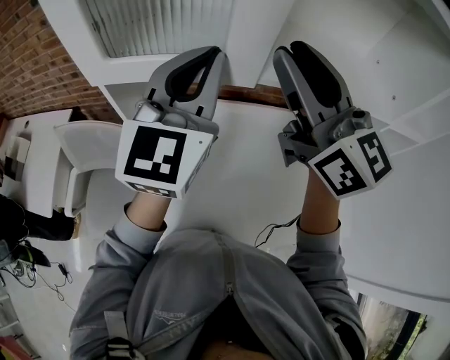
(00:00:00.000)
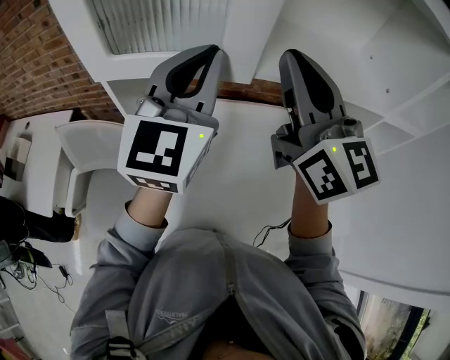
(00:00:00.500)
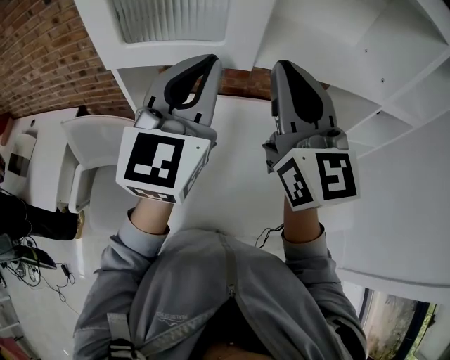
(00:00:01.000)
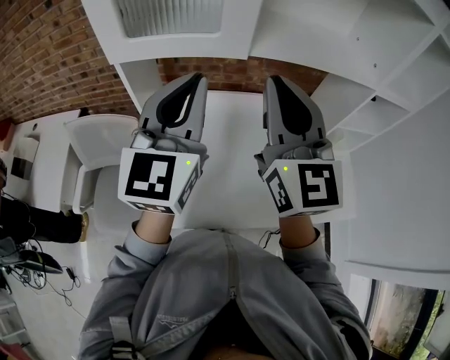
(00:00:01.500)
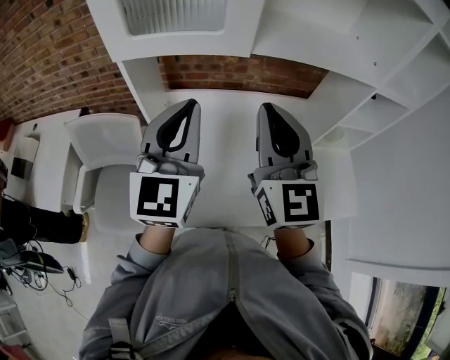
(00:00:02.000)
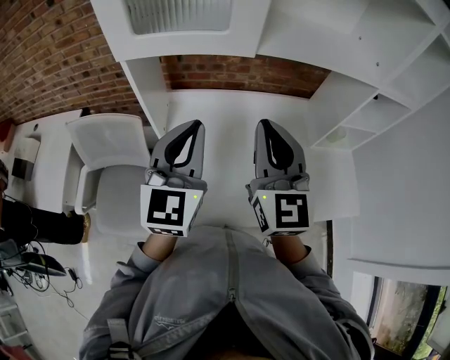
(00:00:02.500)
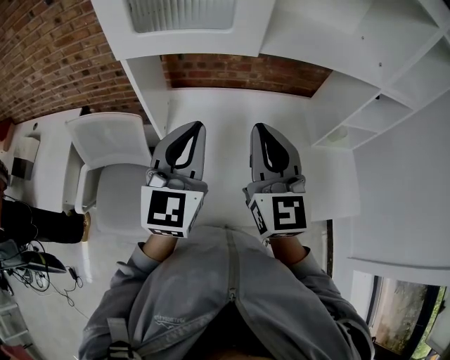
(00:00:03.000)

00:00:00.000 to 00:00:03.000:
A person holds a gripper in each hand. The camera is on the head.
00:00:00.000 to 00:00:01.500: Both grippers move backward, approximately 10 cm. The right gripper rotates some 20 degrees, and closes up.
00:00:01.500 to 00:00:03.000: Both grippers travel together downward, roughly 10 cm.

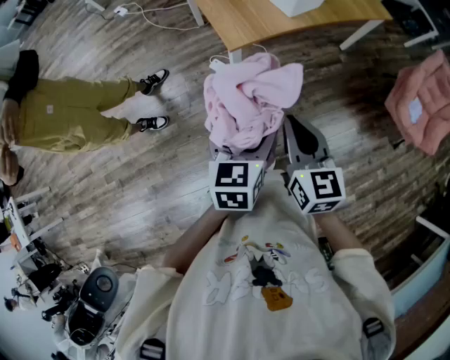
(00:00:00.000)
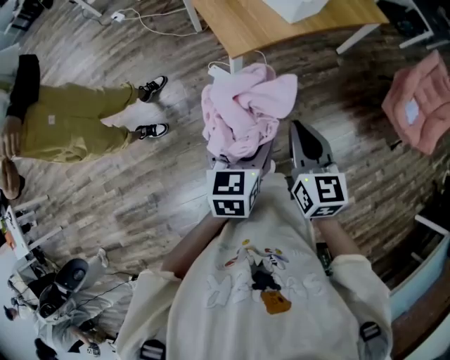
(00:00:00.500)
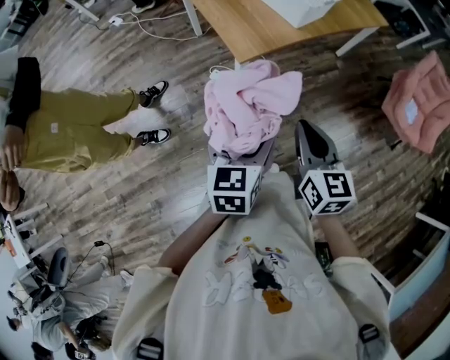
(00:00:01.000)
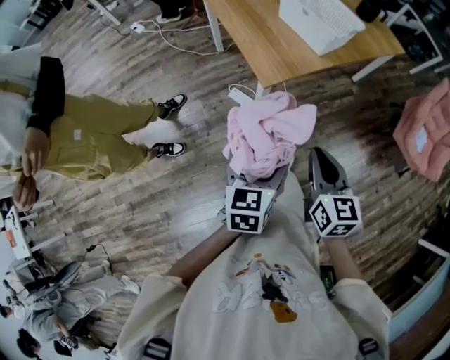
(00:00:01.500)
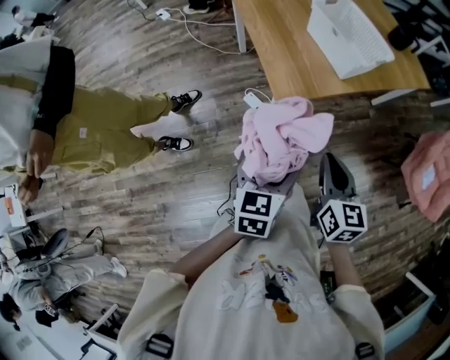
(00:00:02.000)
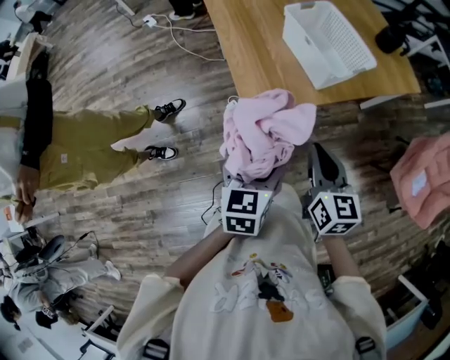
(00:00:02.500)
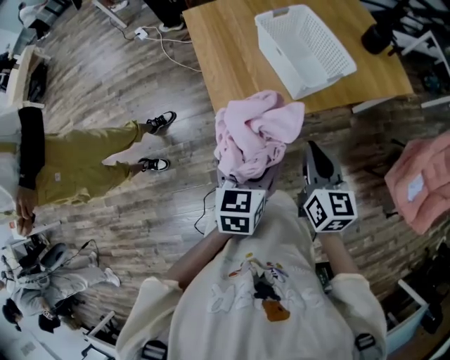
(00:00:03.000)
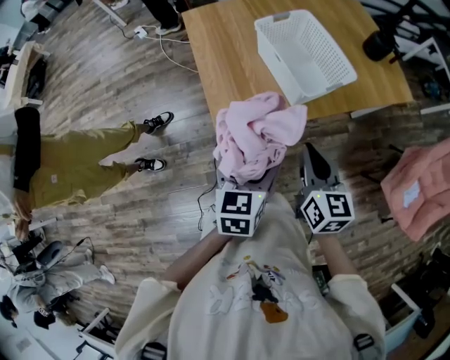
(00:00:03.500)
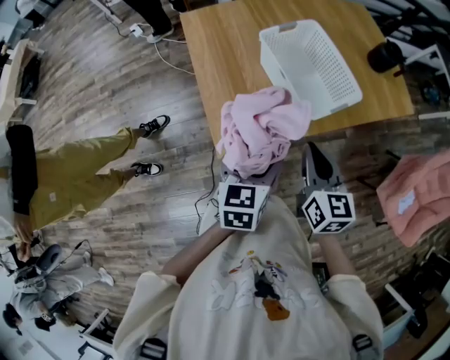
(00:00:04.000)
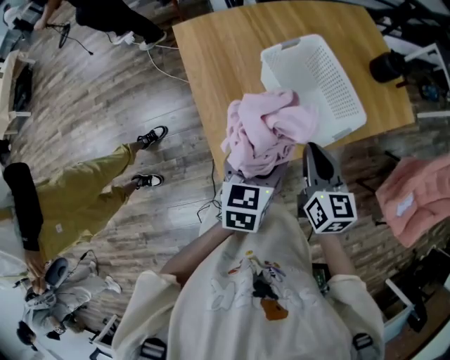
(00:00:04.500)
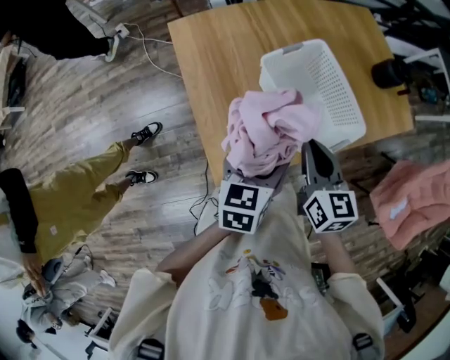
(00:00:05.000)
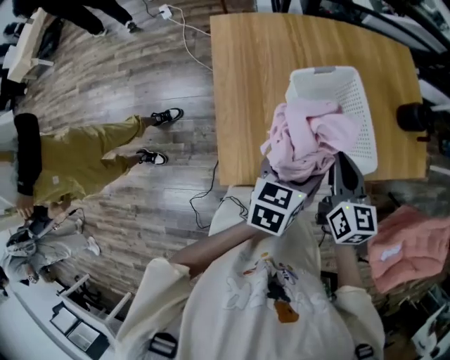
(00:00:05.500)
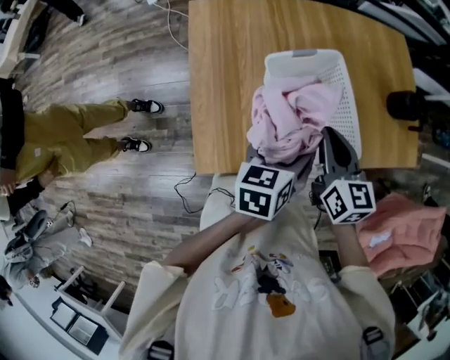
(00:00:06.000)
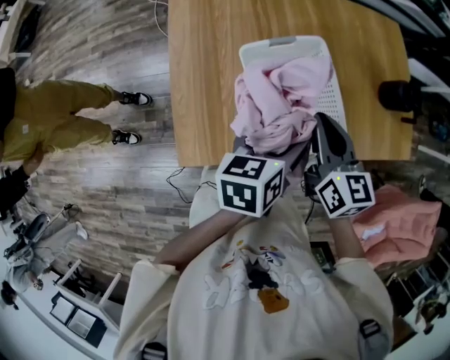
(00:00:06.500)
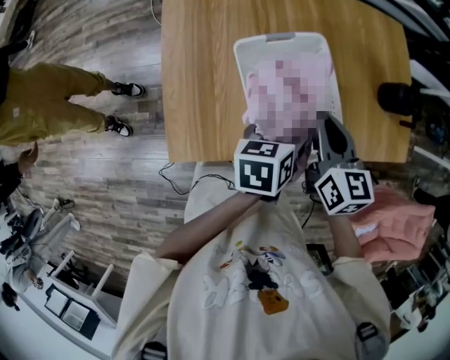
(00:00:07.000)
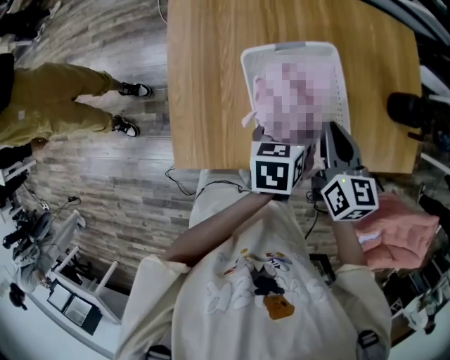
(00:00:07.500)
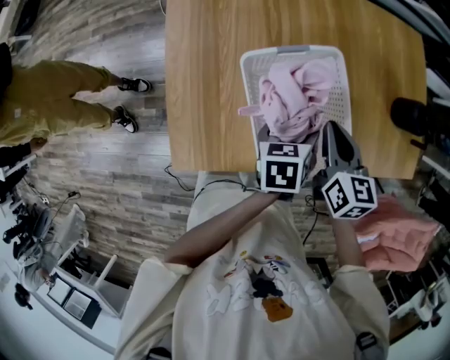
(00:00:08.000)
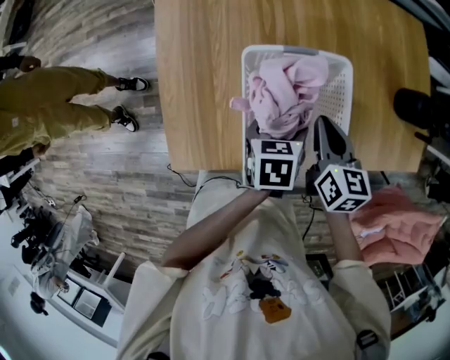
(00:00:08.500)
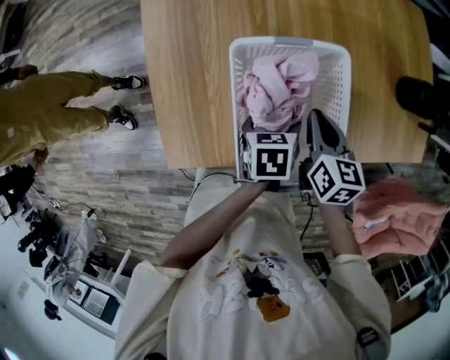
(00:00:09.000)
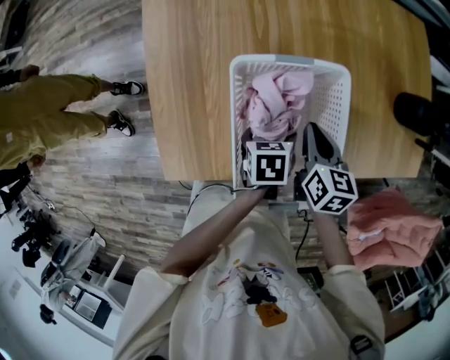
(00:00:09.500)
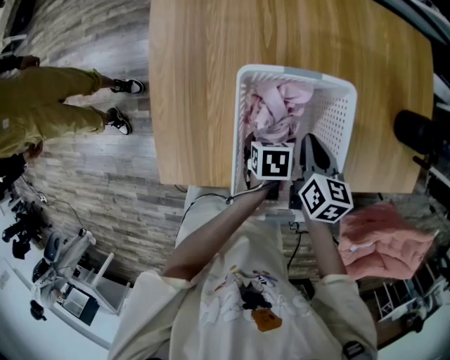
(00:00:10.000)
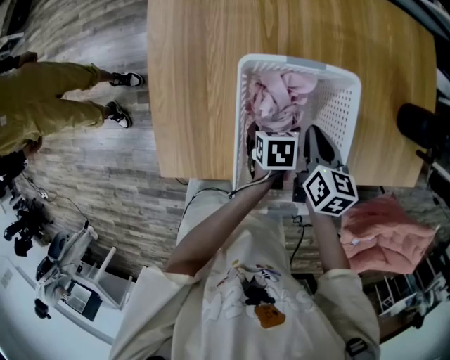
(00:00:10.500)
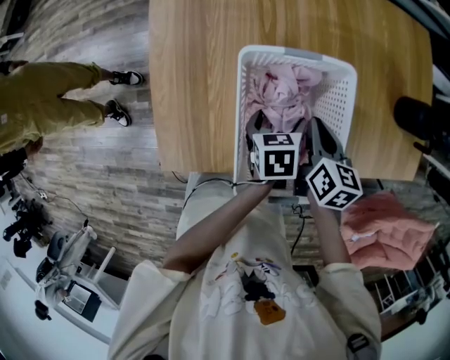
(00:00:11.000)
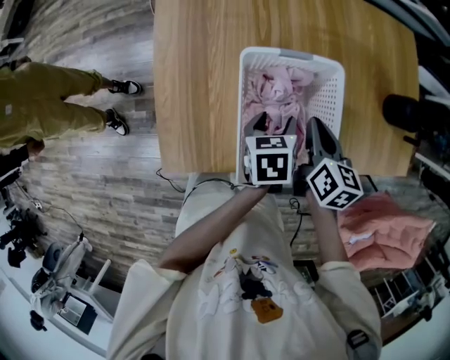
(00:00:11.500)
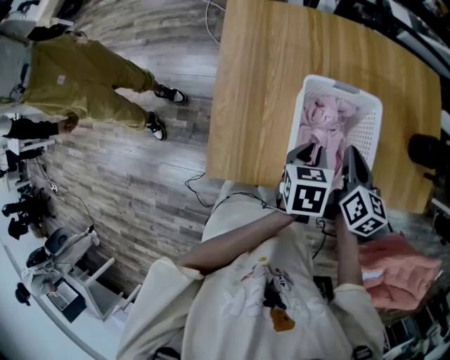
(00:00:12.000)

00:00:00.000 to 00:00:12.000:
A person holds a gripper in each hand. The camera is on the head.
00:00:00.000 to 00:00:02.000: The right gripper heads forward, covering roughly 15 cm, while the left gripper shifts some 15 cm forward and to the left.
00:00:02.000 to 00:00:04.000: The two grippers go about 30 cm forward and to the right.
00:00:04.000 to 00:00:06.000: The left gripper travels forward and to the right by approximately 20 cm, and swivels roughly 20 degrees. The right gripper moves forward, some 25 cm.
00:00:06.000 to 00:00:08.000: The grippers both shift downward, forward and to the right by approximately 15 cm.
00:00:08.000 to 00:00:10.000: The two grippers go about 15 cm downward.
00:00:10.000 to 00:00:12.000: The left gripper moves upward, some 20 cm, rotates about 20 degrees, and closes up. Meanwhile the right gripper travels upward by approximately 10 cm.

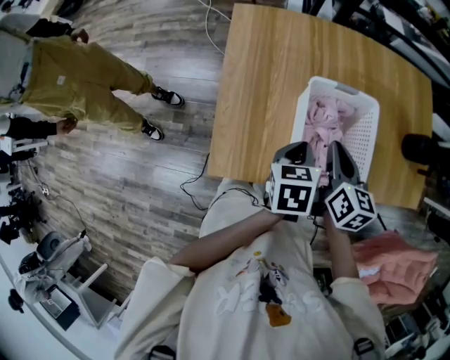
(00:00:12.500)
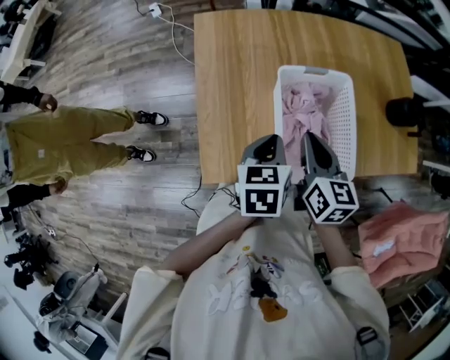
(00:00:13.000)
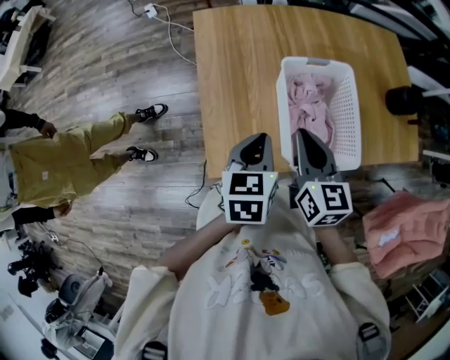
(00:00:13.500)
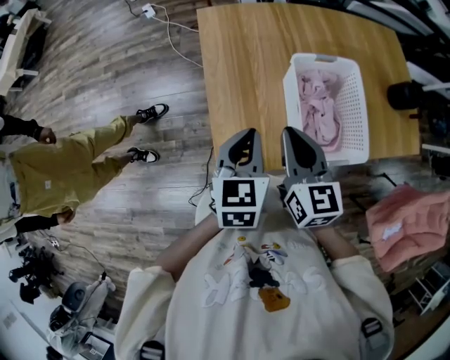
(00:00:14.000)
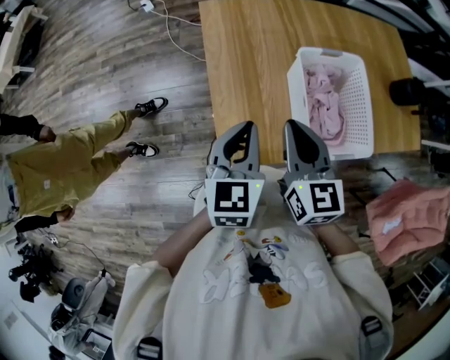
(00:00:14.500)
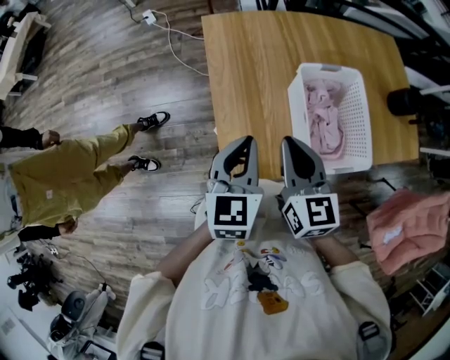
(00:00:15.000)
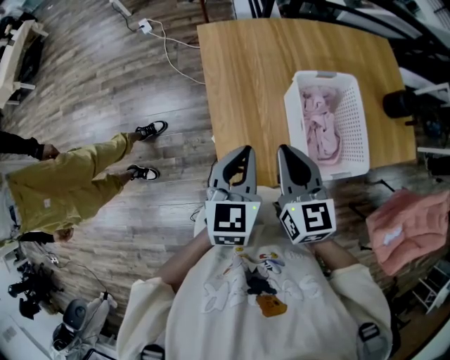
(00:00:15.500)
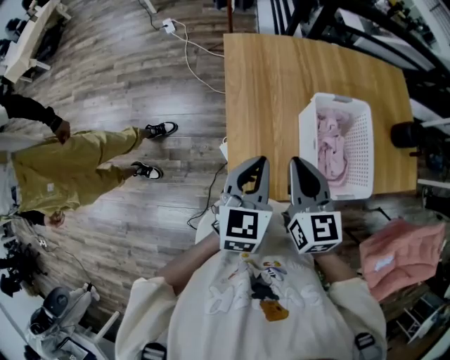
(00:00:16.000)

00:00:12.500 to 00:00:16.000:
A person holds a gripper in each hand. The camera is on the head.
00:00:12.500 to 00:00:14.500: The left gripper travels to the left and upward by roughly 20 cm, and turns by approximately 30 degrees, while the right gripper heads to the left, backward and upward, covering about 20 cm.
00:00:14.500 to 00:00:16.000: The grippers move only a little.

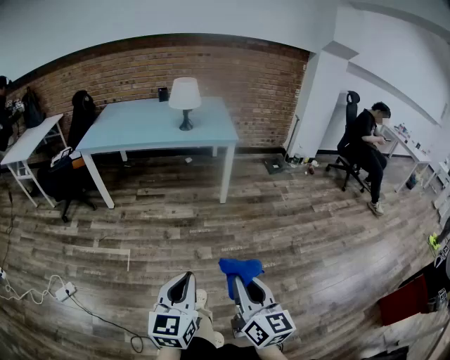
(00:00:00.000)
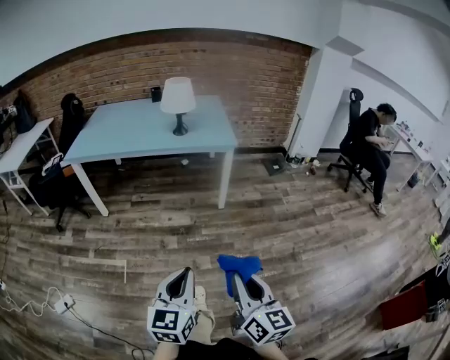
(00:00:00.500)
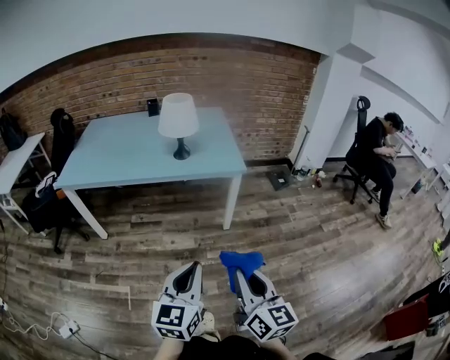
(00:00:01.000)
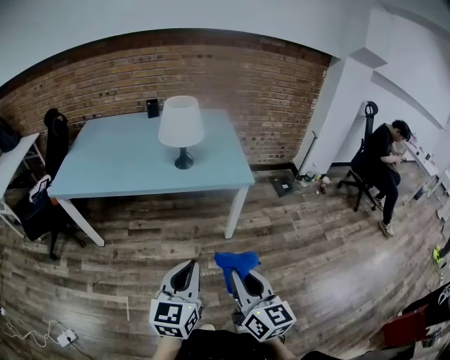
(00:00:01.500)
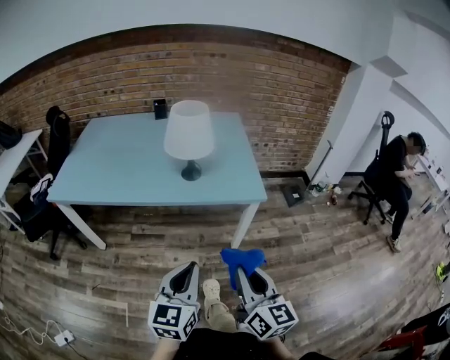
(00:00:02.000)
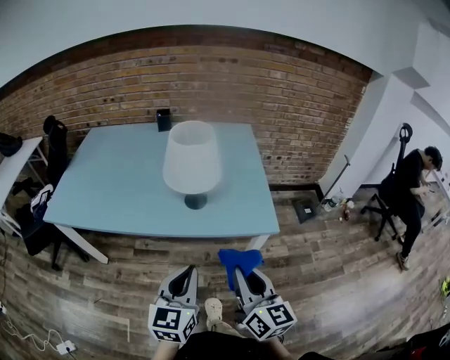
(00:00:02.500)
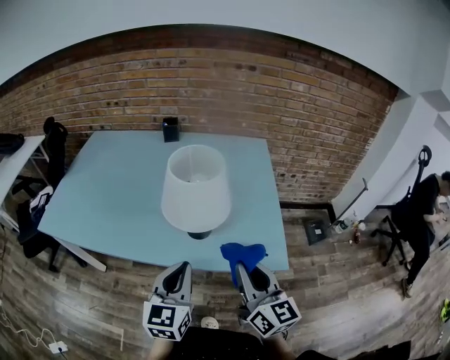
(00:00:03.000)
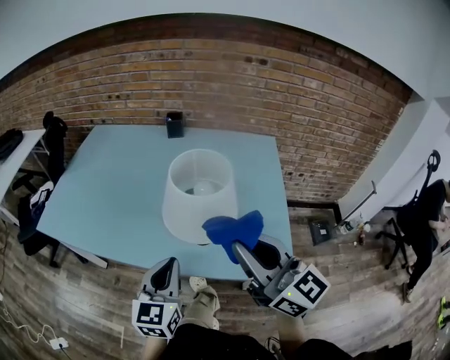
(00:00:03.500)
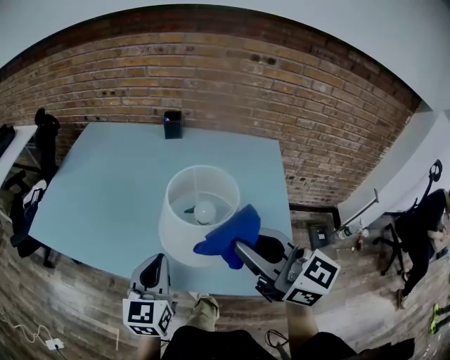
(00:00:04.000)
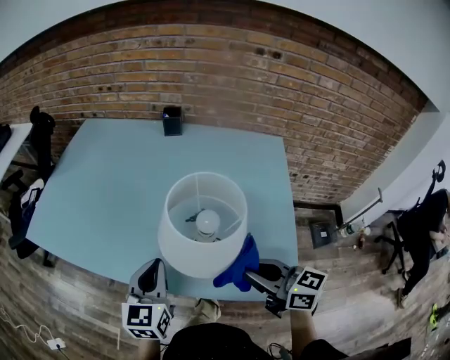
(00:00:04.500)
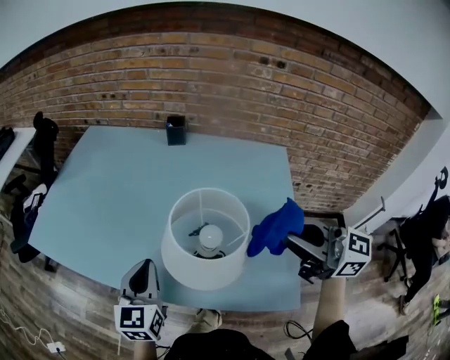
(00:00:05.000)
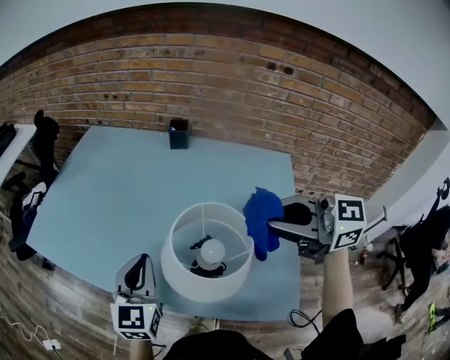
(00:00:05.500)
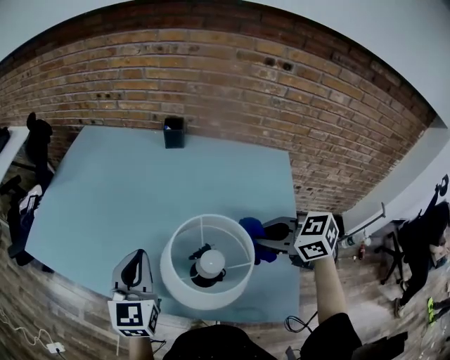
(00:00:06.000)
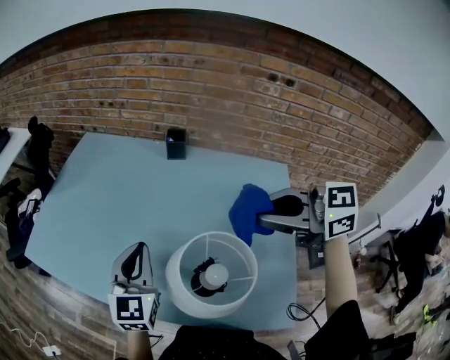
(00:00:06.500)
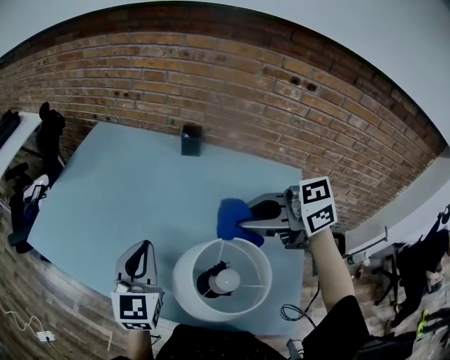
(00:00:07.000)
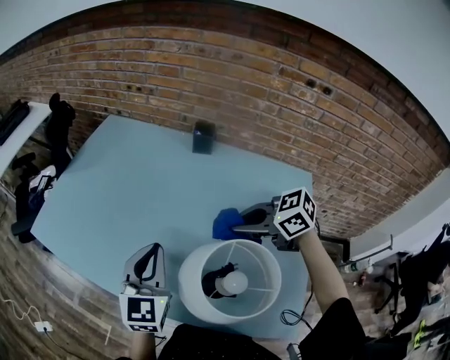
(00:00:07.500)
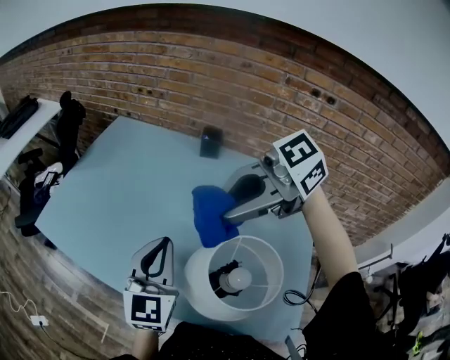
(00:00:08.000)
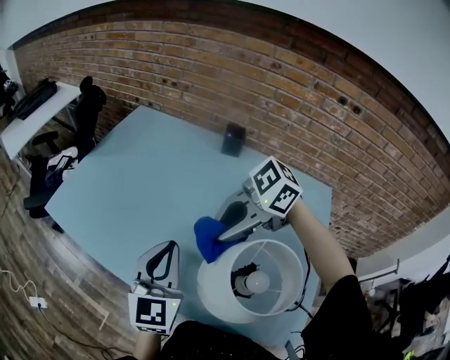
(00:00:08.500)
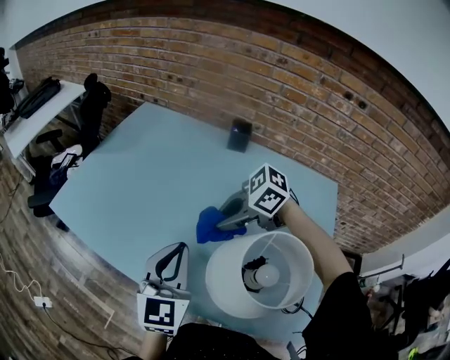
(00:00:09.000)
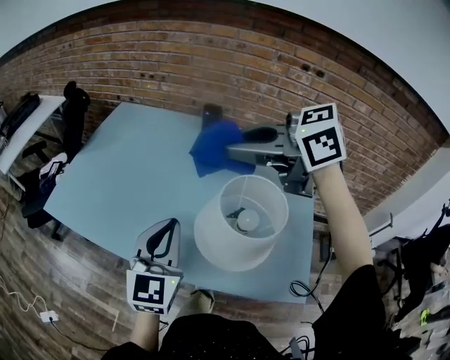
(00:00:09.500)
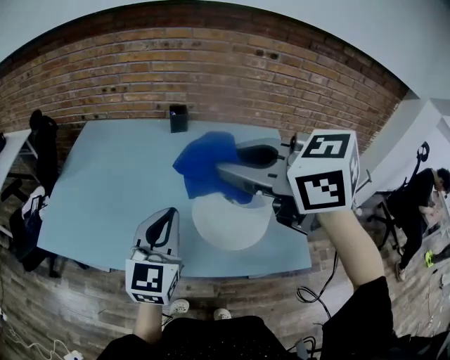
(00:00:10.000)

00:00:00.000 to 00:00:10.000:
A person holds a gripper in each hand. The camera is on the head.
00:00:00.000 to 00:00:02.000: The two grippers travel together, forward, approximately 60 cm.
00:00:02.000 to 00:00:04.000: Both grippers are carried approximately 50 cm. The right gripper turns by roughly 50 degrees; the left gripper turns by roughly 20 degrees.
00:00:04.000 to 00:00:06.000: The right gripper goes up and down, some 15 cm each way, reversing 2 times, and tips its fingers downward by some 40 degrees. Meanwhile the left gripper moves forward, some 10 cm.
00:00:06.000 to 00:00:08.000: The right gripper swings up and down, approximately 20 cm each way, with 2 reversals, and turns by about 60 degrees; the left gripper travels upward by roughly 5 cm.
00:00:08.000 to 00:00:10.000: The left gripper moves about 10 cm, and turns by approximately 20 degrees; the right gripper travels downward and back again, about 20 cm each way, and swivels some 70 degrees.
